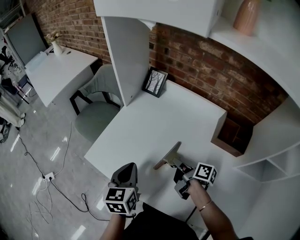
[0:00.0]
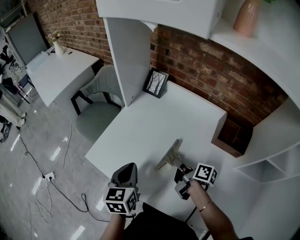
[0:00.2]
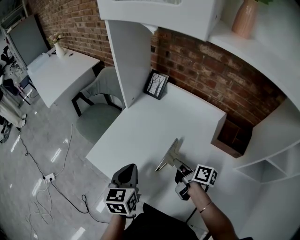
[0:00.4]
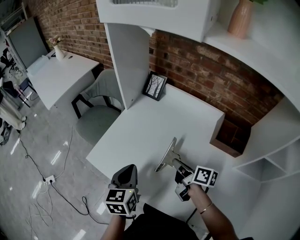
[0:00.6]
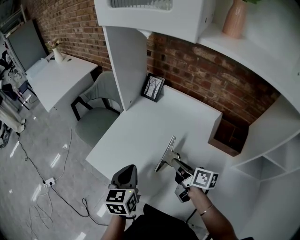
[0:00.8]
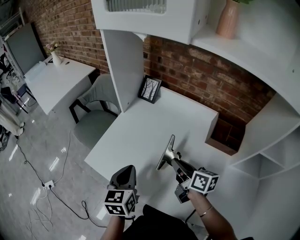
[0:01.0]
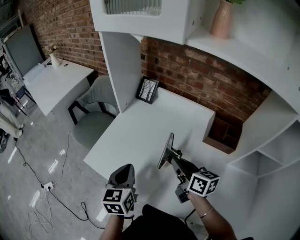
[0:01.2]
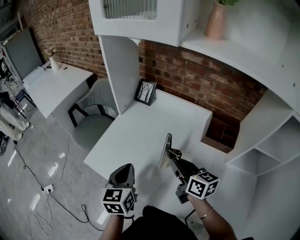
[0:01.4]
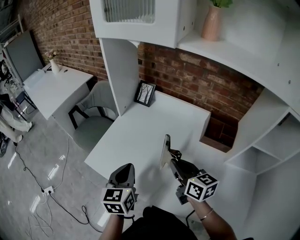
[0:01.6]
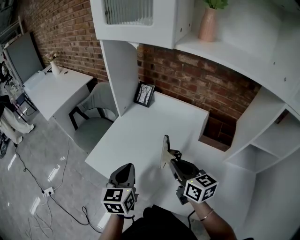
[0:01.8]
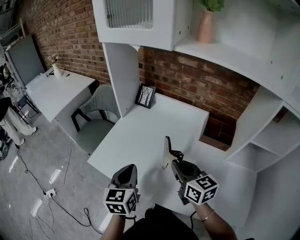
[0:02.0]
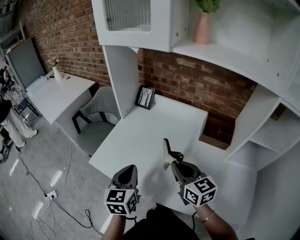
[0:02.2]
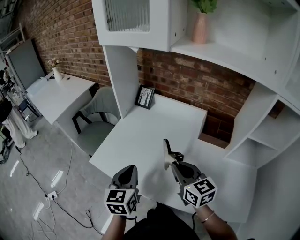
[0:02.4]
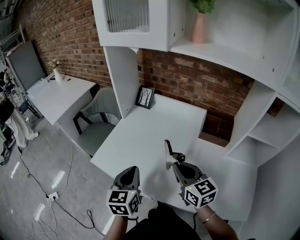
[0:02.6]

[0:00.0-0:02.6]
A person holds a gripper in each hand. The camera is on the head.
0:00.0 to 0:01.2: The right gripper shifts approximately 10 cm upward, and swivels about 40 degrees.
0:01.2 to 0:02.6: The right gripper heads backward and upward, covering about 10 cm, and changes its angle by some 30 degrees, while the left gripper heads backward, covering some 5 cm.

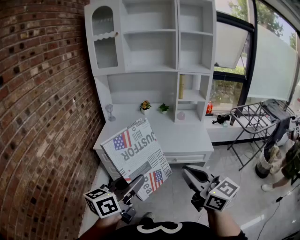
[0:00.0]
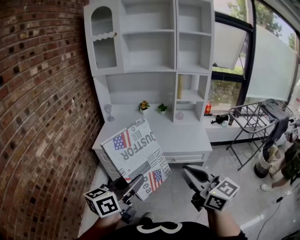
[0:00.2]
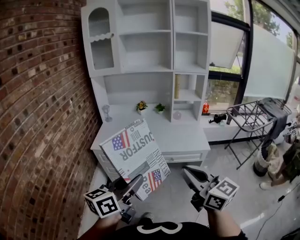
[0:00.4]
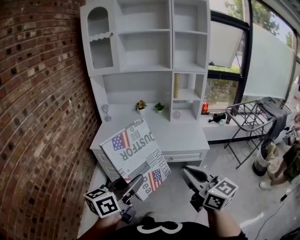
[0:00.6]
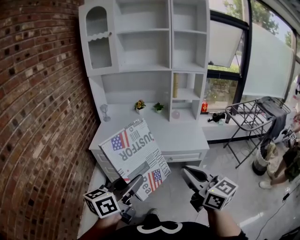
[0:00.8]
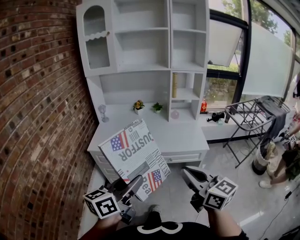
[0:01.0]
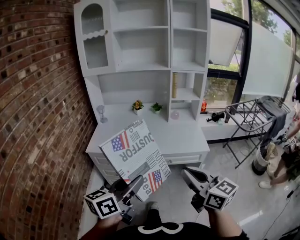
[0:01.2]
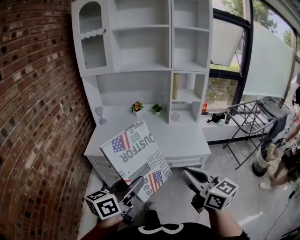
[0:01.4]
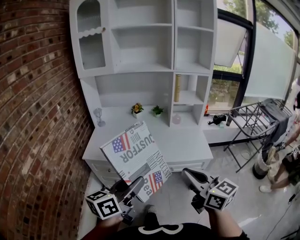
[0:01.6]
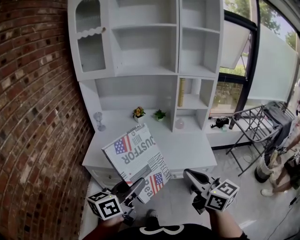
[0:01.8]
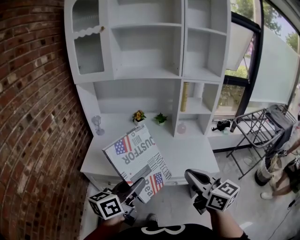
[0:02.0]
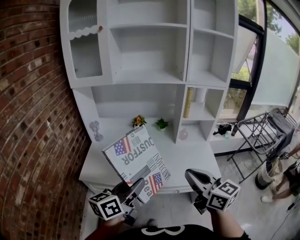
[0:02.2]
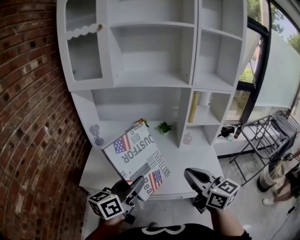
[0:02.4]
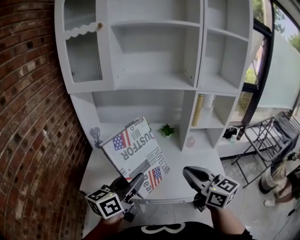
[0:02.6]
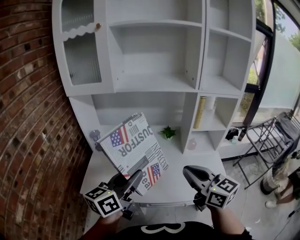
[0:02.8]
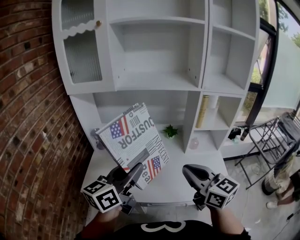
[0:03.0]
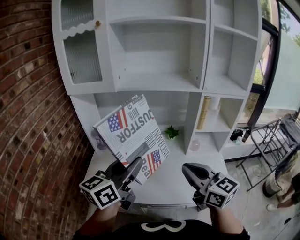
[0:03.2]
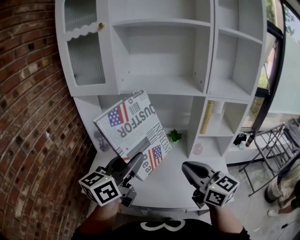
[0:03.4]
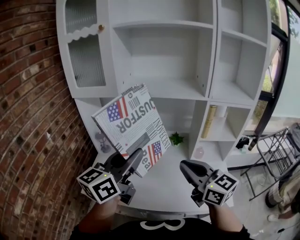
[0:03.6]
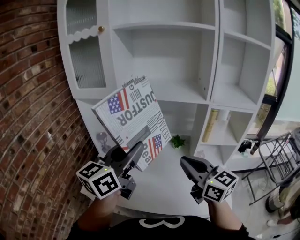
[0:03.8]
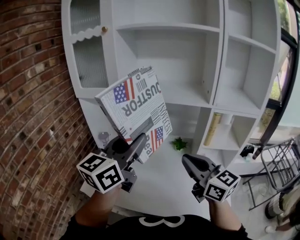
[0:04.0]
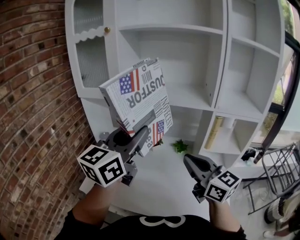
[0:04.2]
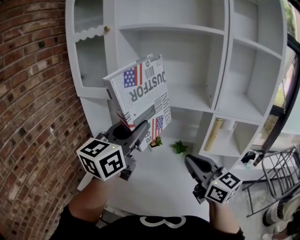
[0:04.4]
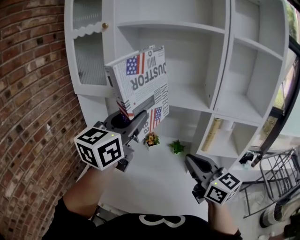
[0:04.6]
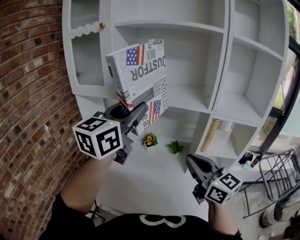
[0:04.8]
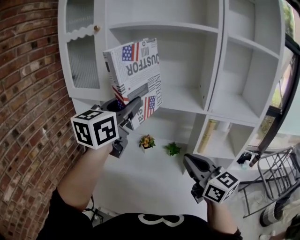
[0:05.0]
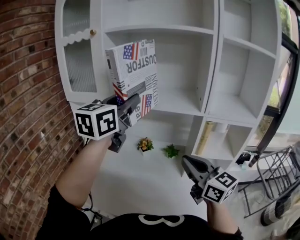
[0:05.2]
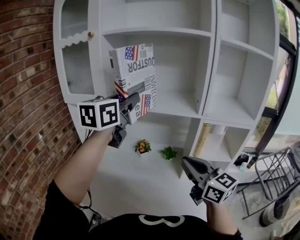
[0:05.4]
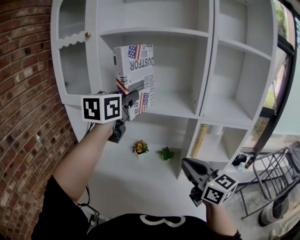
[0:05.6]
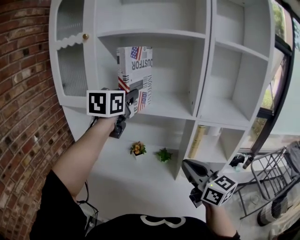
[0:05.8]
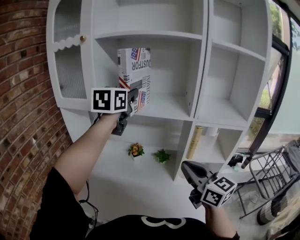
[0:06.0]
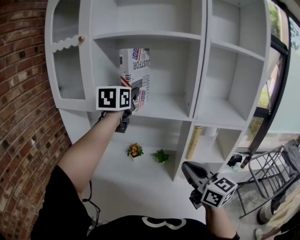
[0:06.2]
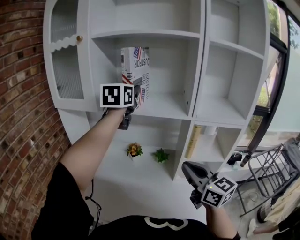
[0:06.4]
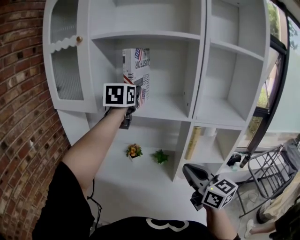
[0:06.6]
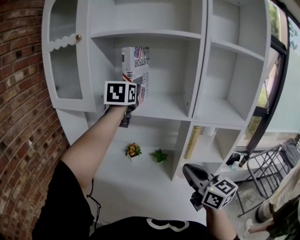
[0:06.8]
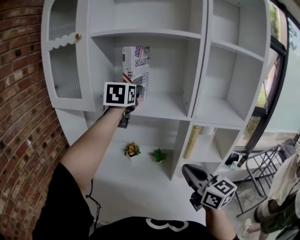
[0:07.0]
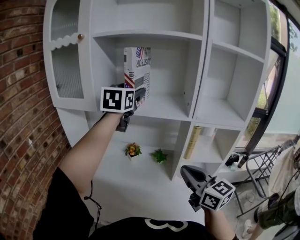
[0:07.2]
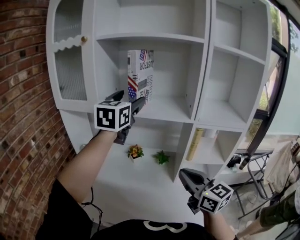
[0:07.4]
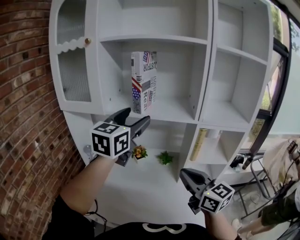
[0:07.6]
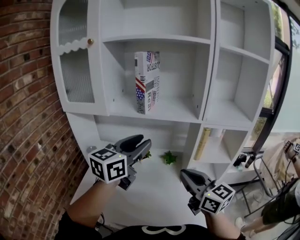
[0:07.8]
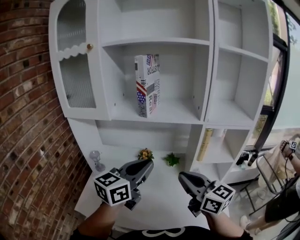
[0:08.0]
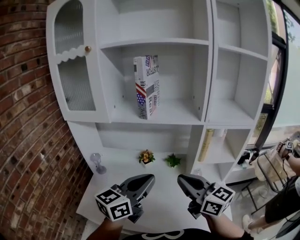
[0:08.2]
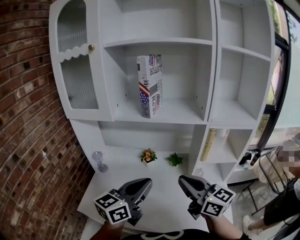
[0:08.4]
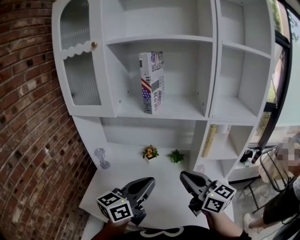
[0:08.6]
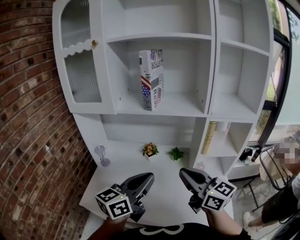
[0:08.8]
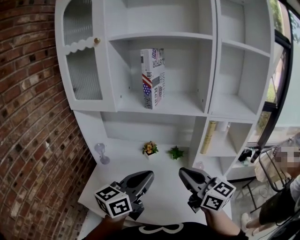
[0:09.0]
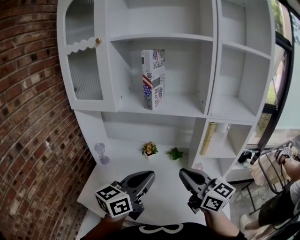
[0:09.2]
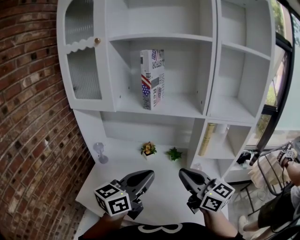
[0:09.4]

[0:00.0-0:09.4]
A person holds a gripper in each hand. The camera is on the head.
0:00.0 to 0:01.6: Both grippers travel together forward, roughly 10 cm.
0:01.6 to 0:03.2: Both grippers move forward, roughly 35 cm.
0:03.2 to 0:04.8: The left gripper moves upward and forward, some 20 cm, and rotates about 30 degrees; the right gripper travels forward, to the right and upward by about 15 cm.
0:04.8 to 0:06.2: The right gripper is displaced to the right by approximately 5 cm. The left gripper moves forward, approximately 15 cm.
0:06.2 to 0:07.8: The right gripper is displaced to the left by approximately 5 cm. Meanwhile the left gripper shifts about 20 cm backward and downward, swivels approximately 20 degrees, and opens and closes again.
0:07.8 to 0:09.4: The left gripper shifts approximately 15 cm backward and downward, and closes.

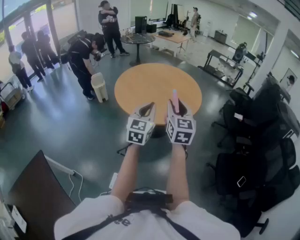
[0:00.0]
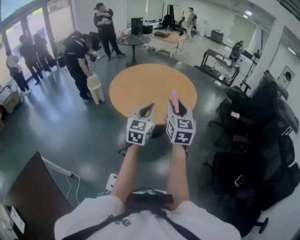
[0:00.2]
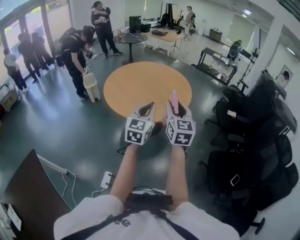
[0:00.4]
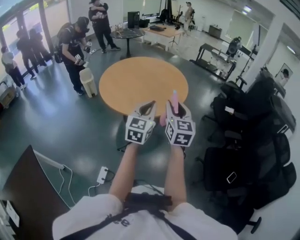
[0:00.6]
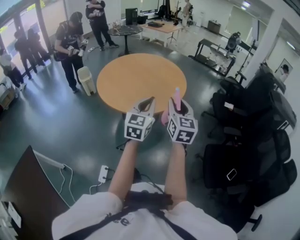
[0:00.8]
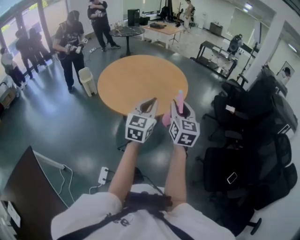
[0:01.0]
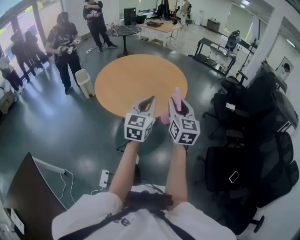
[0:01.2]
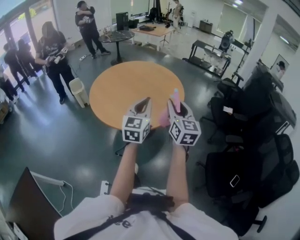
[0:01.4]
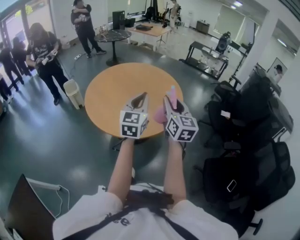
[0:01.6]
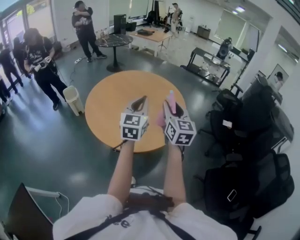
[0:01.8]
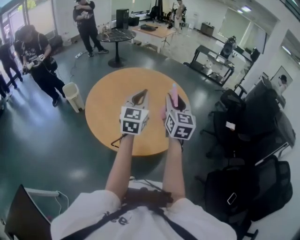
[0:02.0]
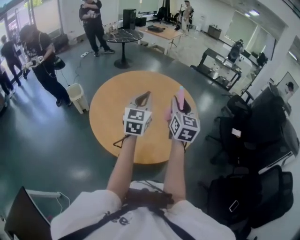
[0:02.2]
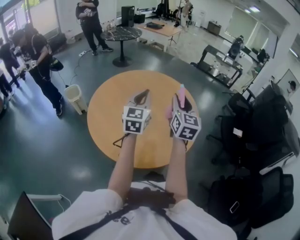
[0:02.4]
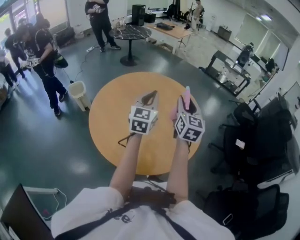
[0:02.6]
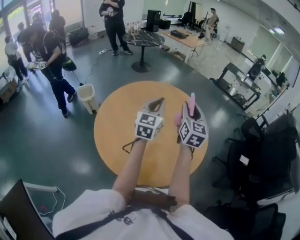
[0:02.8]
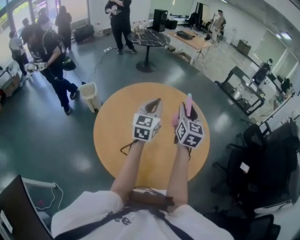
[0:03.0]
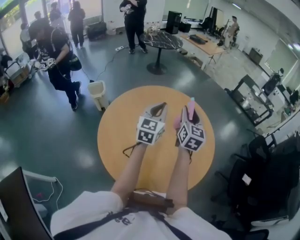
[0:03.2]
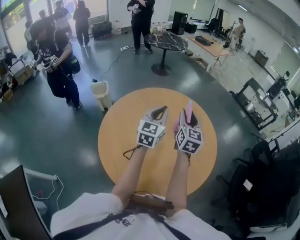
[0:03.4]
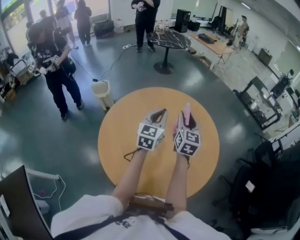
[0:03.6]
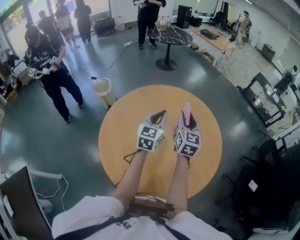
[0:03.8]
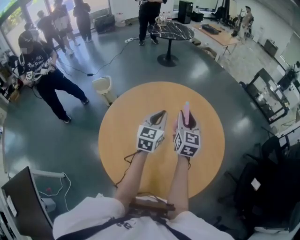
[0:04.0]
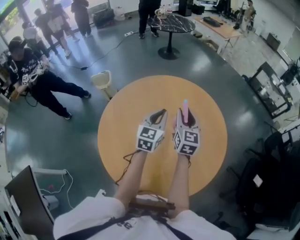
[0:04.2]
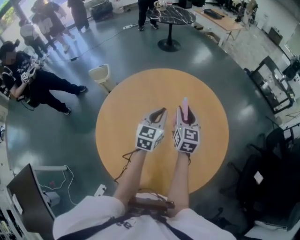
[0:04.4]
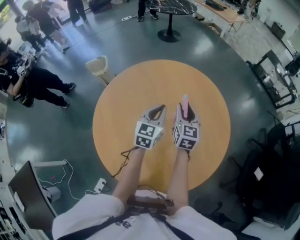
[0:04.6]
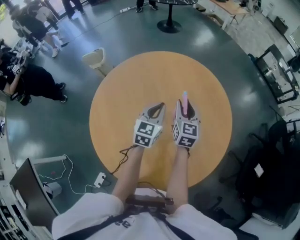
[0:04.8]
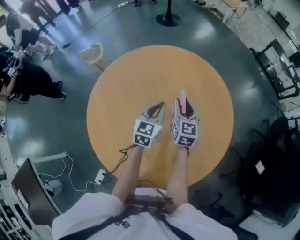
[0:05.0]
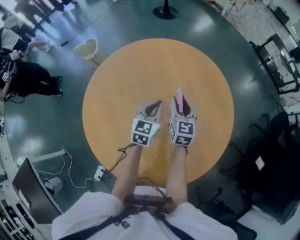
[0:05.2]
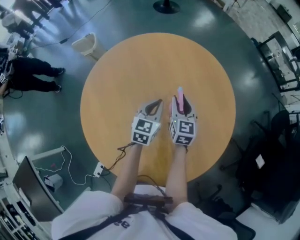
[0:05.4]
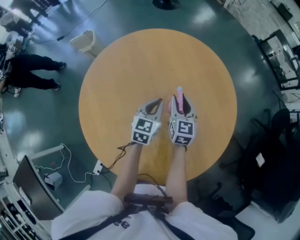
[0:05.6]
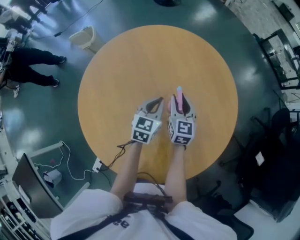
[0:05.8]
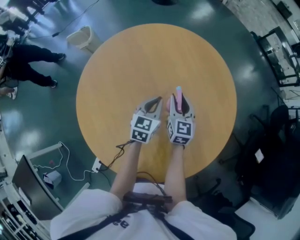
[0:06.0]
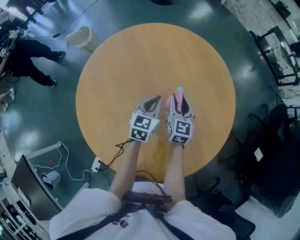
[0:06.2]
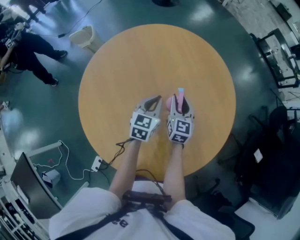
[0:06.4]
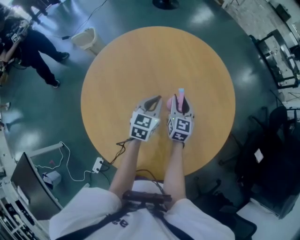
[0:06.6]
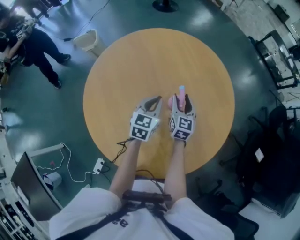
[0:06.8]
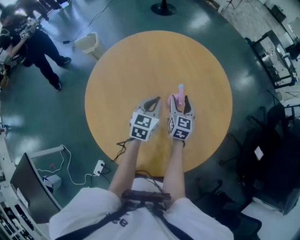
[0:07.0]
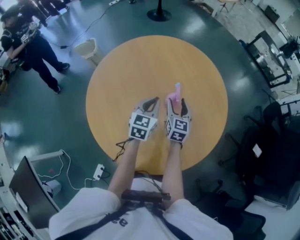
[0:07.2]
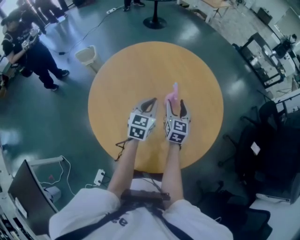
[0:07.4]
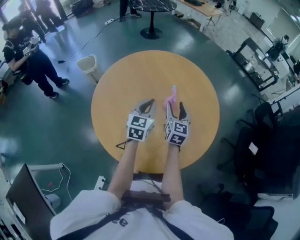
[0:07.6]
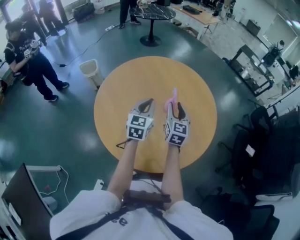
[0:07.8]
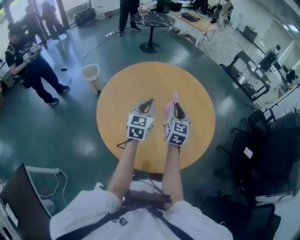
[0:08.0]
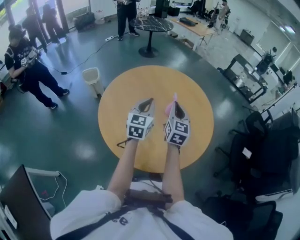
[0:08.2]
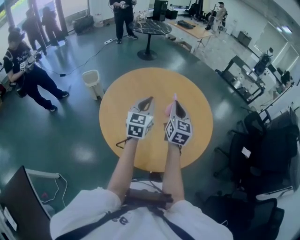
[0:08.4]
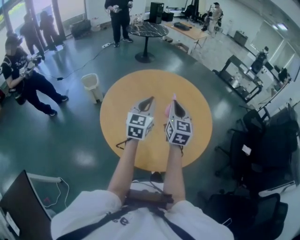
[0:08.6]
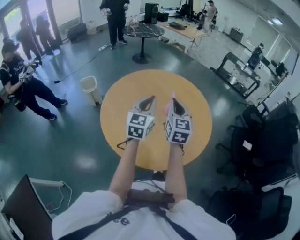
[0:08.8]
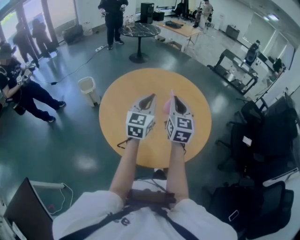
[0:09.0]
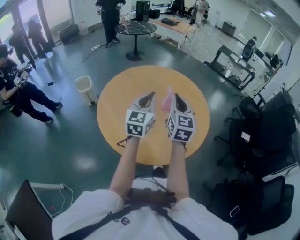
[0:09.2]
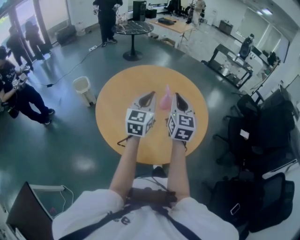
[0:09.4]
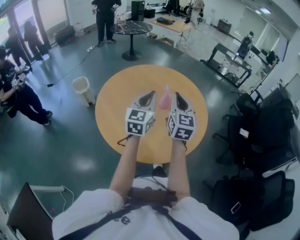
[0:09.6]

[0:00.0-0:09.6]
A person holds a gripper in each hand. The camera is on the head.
0:00.0 to 0:01.6: The grippers both shift forward and to the right by some 25 cm.
0:01.6 to 0:03.2: The two grippers travel together, forward, approximately 50 cm.
0:03.2 to 0:04.8: The right gripper travels downward and forward by roughly 20 cm. Meanwhile the left gripper moves downward, roughly 20 cm.
0:04.8 to 0:06.4: Both grippers move downward, roughly 10 cm.
0:06.4 to 0:08.0: The grippers both shift upward and backward by some 25 cm. The right gripper opens, then closes again.
0:08.0 to 0:09.6: The right gripper is displaced backward and upward by approximately 15 cm. The left gripper shifts about 15 cm upward and backward.

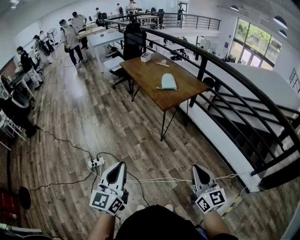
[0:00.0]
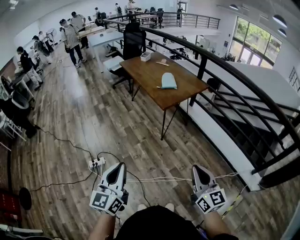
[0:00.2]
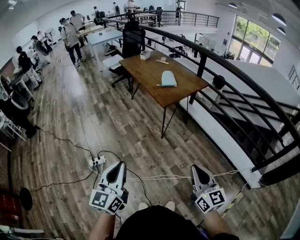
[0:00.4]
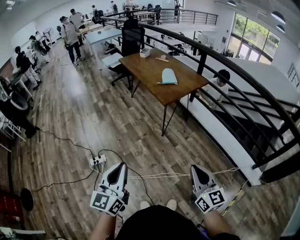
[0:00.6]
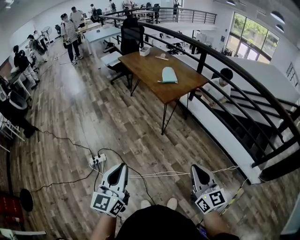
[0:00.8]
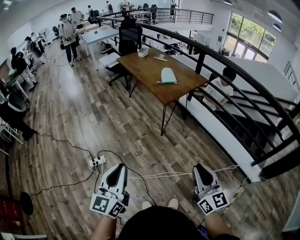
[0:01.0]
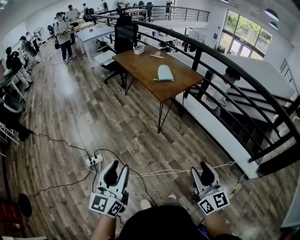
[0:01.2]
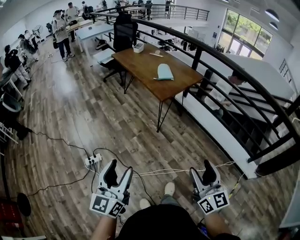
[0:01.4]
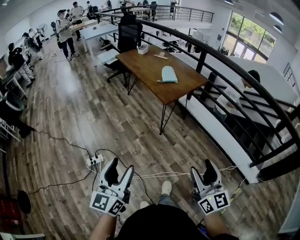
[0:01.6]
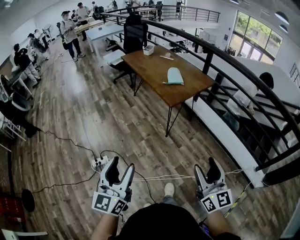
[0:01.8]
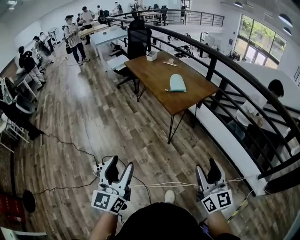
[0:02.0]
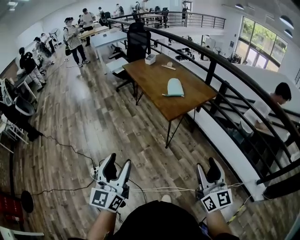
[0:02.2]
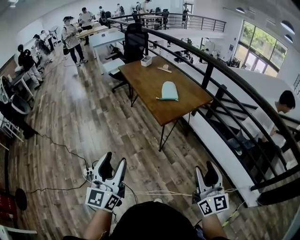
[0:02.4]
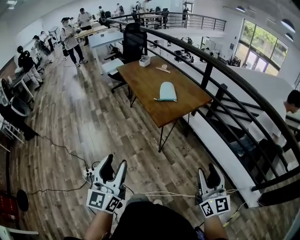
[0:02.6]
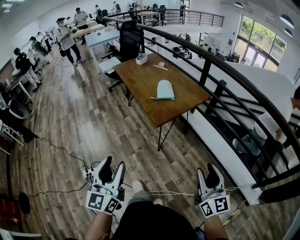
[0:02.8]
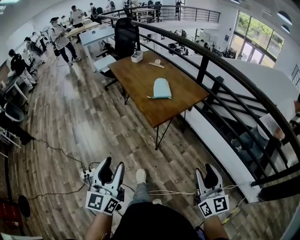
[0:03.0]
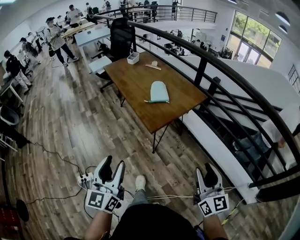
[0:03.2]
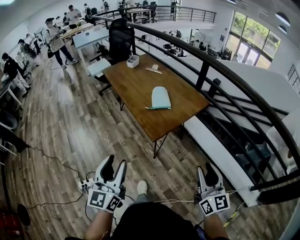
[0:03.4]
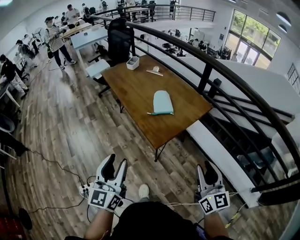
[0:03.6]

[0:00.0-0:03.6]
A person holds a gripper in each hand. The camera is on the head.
0:00.0 to 0:01.8: The left gripper moves to the left, roughly 5 cm, and opens; the right gripper ends up approximately 5 cm from where it was, and opens its fingers.
0:01.8 to 0:03.6: Both grippers travel together forward, some 35 cm. The right gripper closes.
